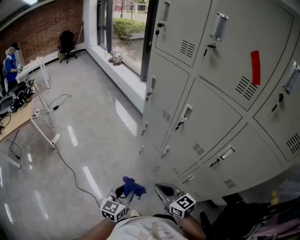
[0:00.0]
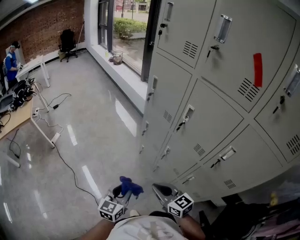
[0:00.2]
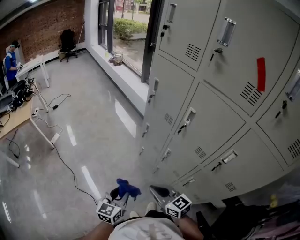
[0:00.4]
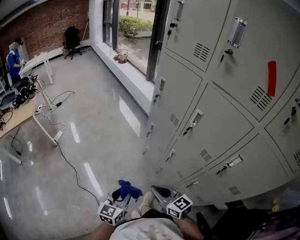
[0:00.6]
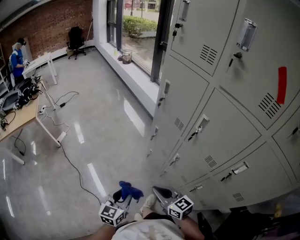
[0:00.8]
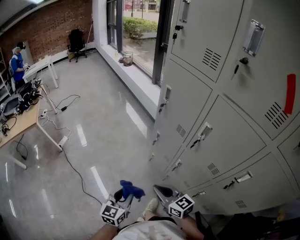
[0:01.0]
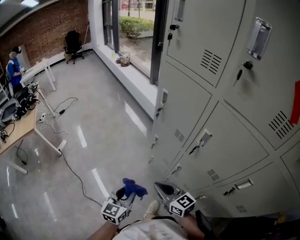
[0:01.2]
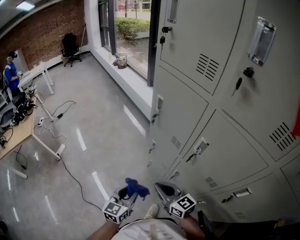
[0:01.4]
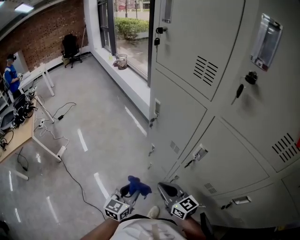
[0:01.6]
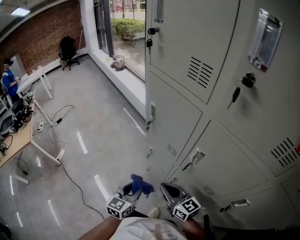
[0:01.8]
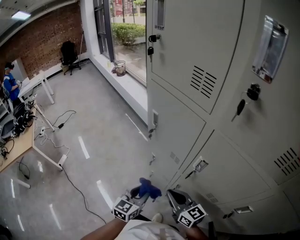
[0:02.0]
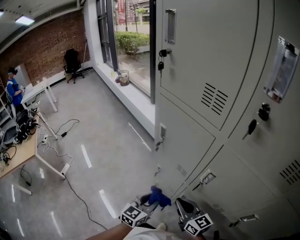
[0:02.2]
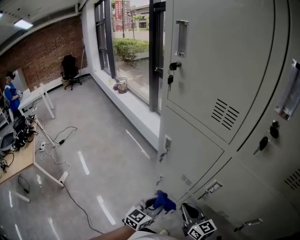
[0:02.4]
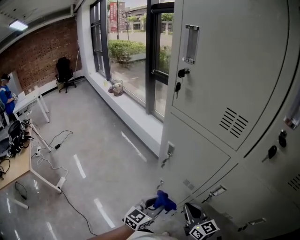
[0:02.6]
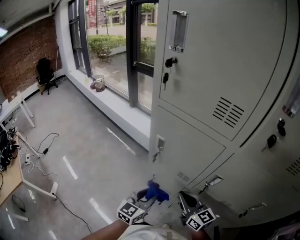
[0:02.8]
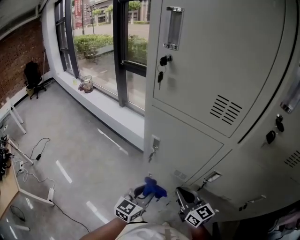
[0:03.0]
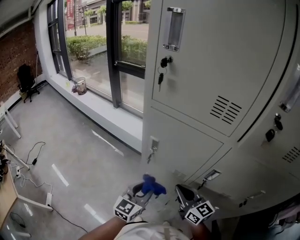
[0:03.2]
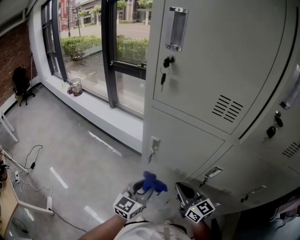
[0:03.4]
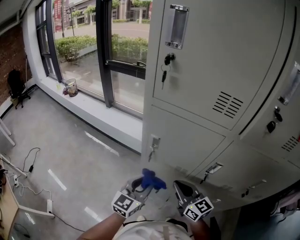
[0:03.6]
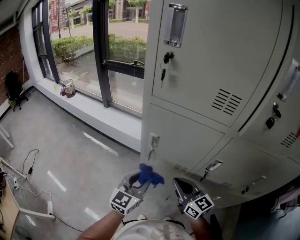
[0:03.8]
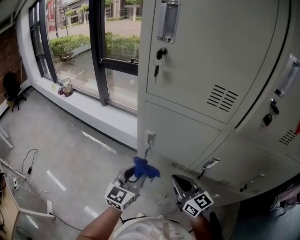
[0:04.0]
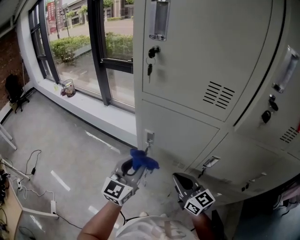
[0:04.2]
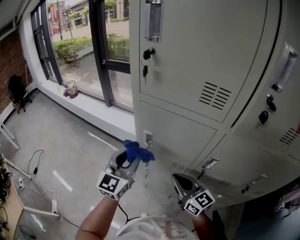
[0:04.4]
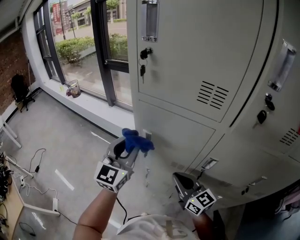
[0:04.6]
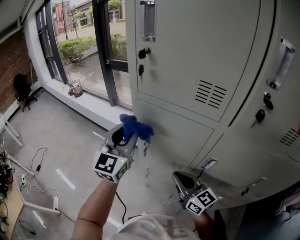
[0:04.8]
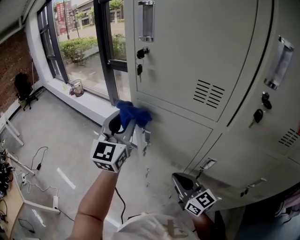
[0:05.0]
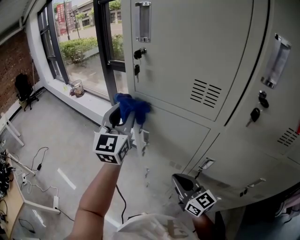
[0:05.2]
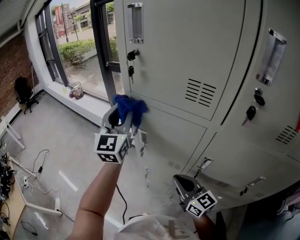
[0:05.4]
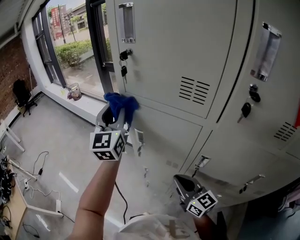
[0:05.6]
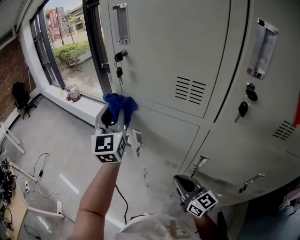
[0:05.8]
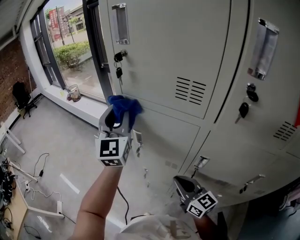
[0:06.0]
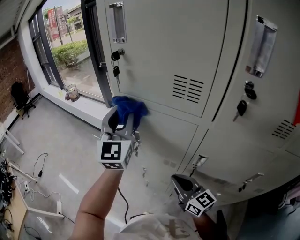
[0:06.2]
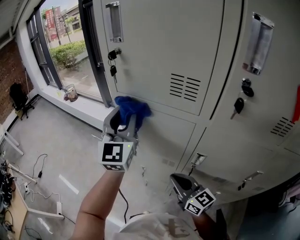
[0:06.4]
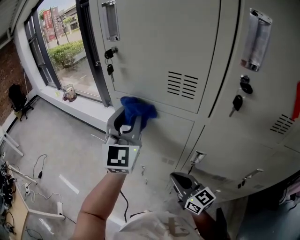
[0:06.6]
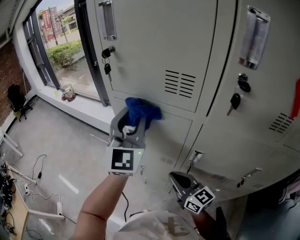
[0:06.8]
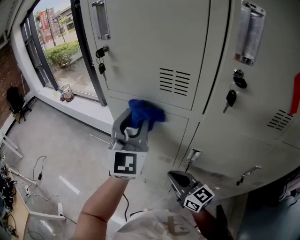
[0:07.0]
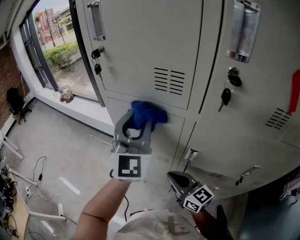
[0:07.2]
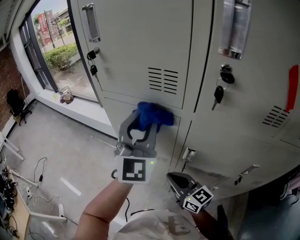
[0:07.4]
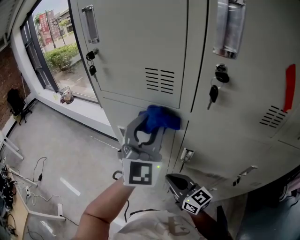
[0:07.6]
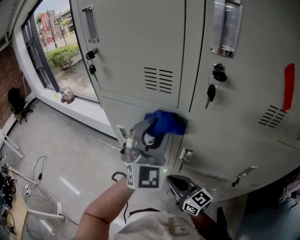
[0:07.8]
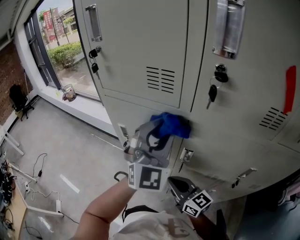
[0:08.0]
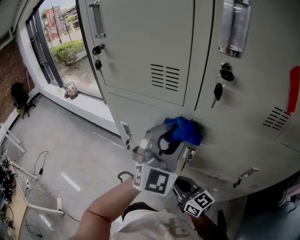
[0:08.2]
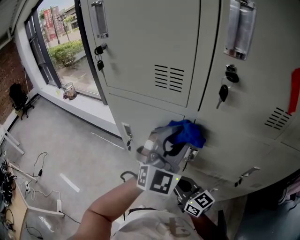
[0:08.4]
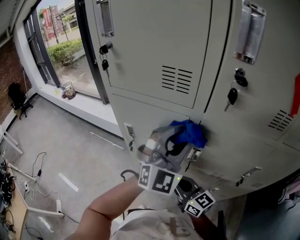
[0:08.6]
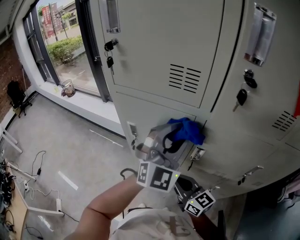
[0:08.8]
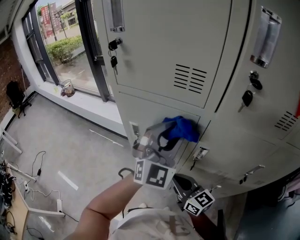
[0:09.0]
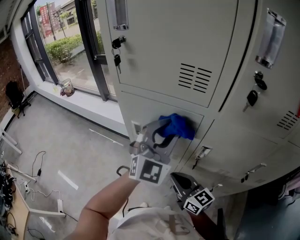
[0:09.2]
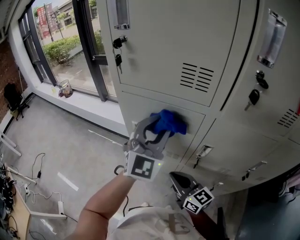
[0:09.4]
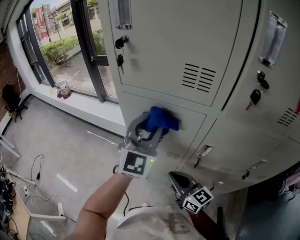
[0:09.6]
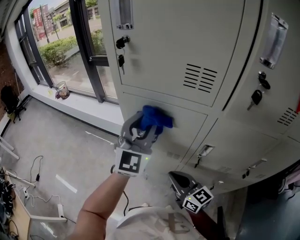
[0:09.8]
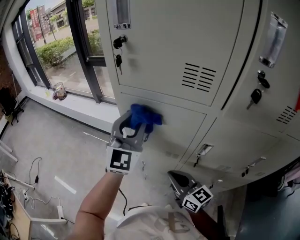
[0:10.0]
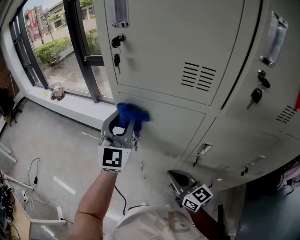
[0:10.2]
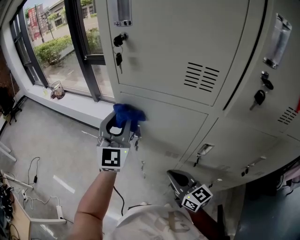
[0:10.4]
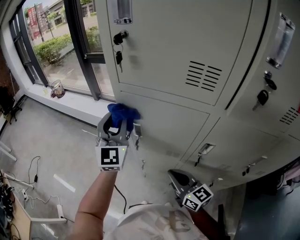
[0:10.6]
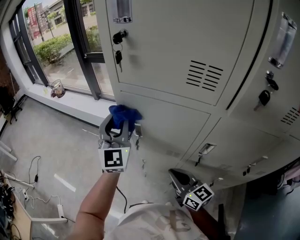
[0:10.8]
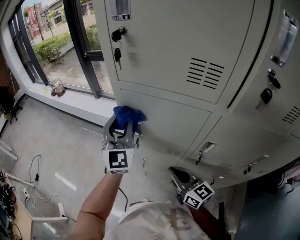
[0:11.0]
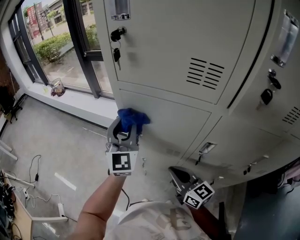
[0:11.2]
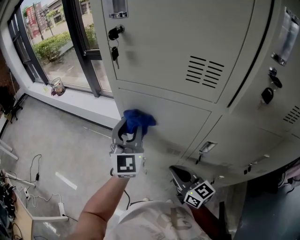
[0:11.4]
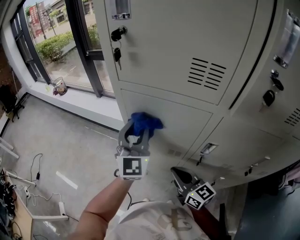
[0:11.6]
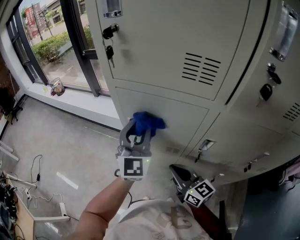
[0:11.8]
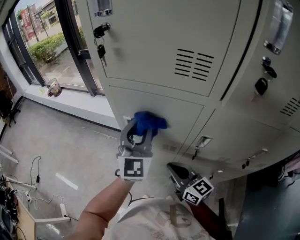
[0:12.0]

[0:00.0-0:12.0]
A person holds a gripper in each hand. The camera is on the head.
0:00.0 to 0:01.6: Both grippers travel together forward, about 25 cm.
0:01.6 to 0:03.0: The left gripper changes place by roughly 20 cm, and turns by some 30 degrees. The right gripper ends up roughly 15 cm from where it was, and swivels approximately 30 degrees.
0:03.0 to 0:04.4: The left gripper is displaced upward, forward and to the left by roughly 20 cm.
0:04.4 to 0:06.0: The right gripper moves some 5 cm; the left gripper is displaced upward and forward by about 15 cm, and rotates approximately 30 degrees.
0:06.0 to 0:07.6: The left gripper heads to the right and backward, covering about 20 cm, and swivels some 20 degrees.
0:07.6 to 0:09.0: The left gripper goes approximately 5 cm downward.
0:09.0 to 0:10.4: The left gripper goes some 20 cm to the left and forward, and rotates roughly 20 degrees.
0:10.4 to 0:12.0: The left gripper moves to the right, some 10 cm.

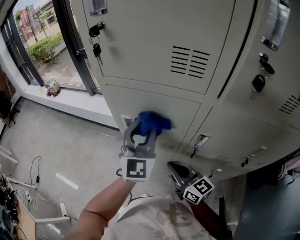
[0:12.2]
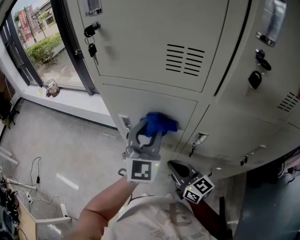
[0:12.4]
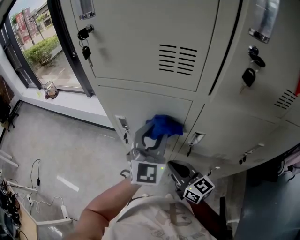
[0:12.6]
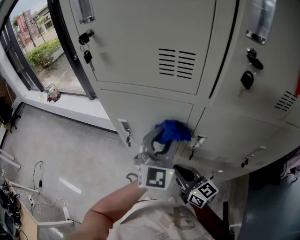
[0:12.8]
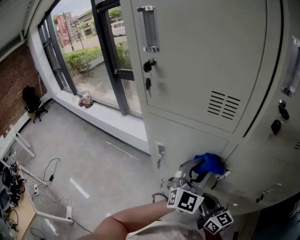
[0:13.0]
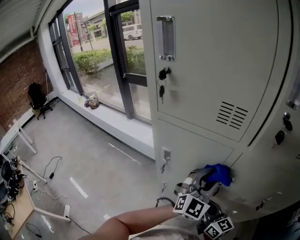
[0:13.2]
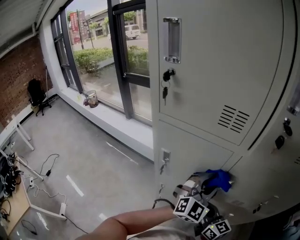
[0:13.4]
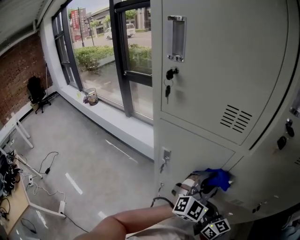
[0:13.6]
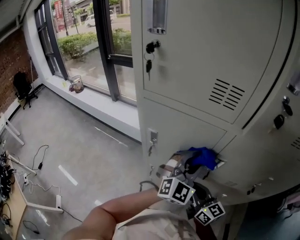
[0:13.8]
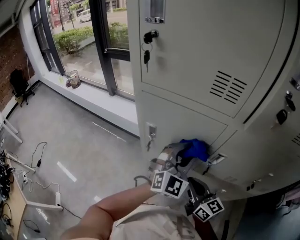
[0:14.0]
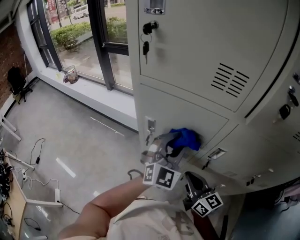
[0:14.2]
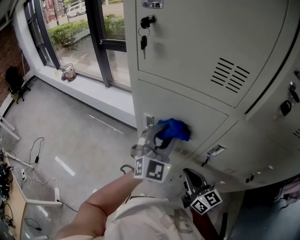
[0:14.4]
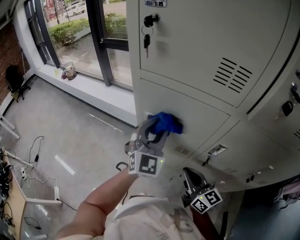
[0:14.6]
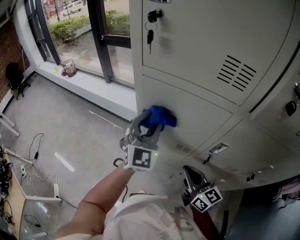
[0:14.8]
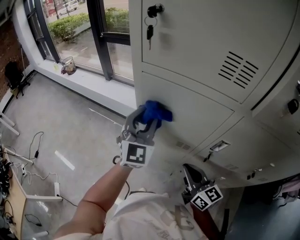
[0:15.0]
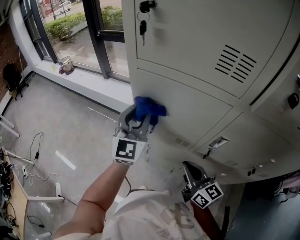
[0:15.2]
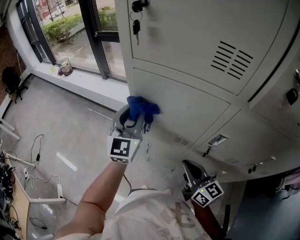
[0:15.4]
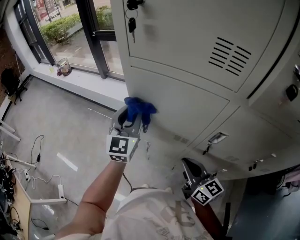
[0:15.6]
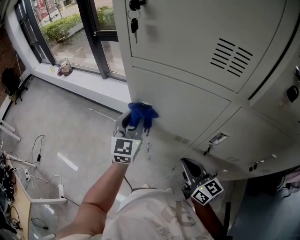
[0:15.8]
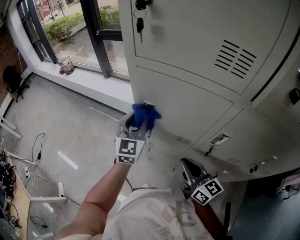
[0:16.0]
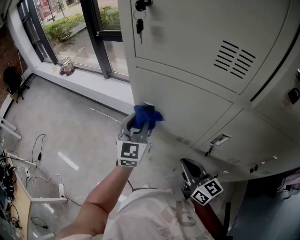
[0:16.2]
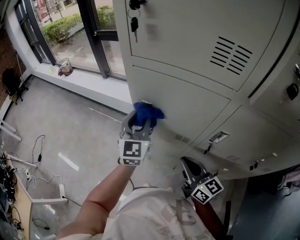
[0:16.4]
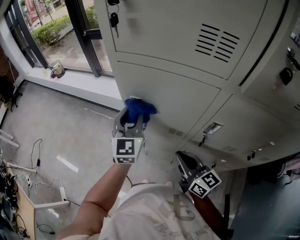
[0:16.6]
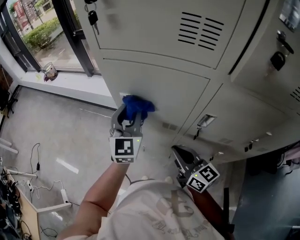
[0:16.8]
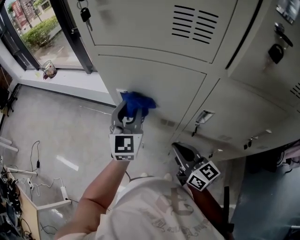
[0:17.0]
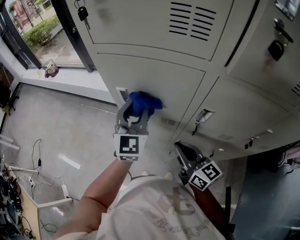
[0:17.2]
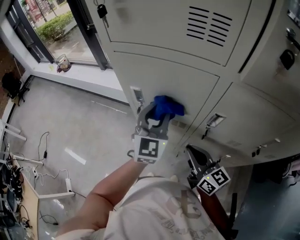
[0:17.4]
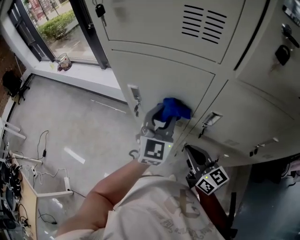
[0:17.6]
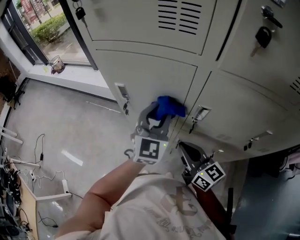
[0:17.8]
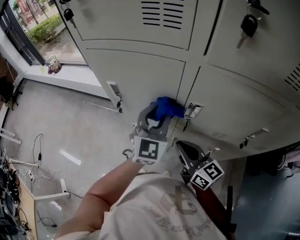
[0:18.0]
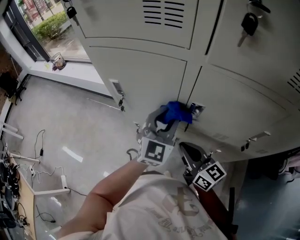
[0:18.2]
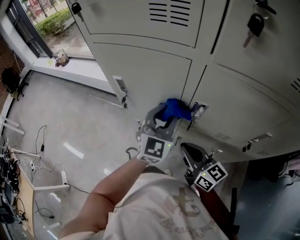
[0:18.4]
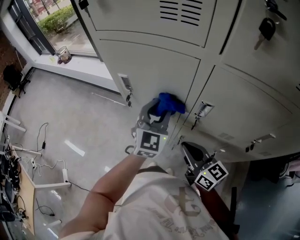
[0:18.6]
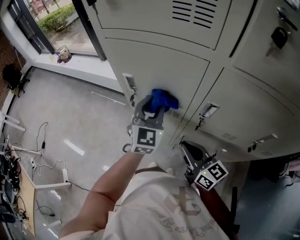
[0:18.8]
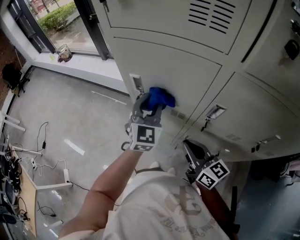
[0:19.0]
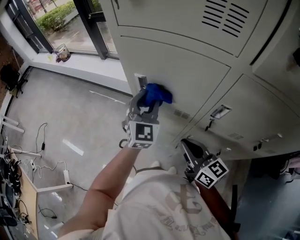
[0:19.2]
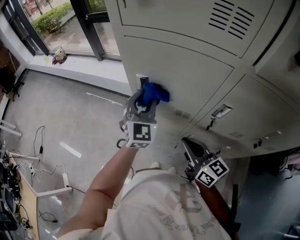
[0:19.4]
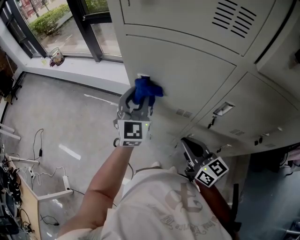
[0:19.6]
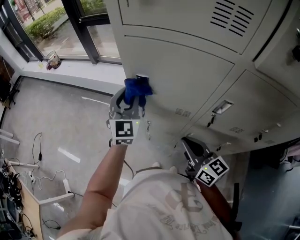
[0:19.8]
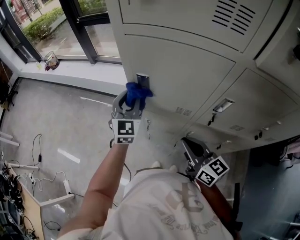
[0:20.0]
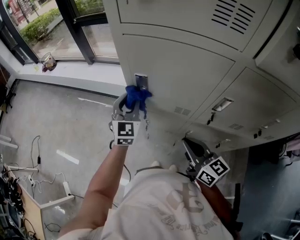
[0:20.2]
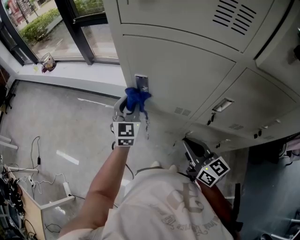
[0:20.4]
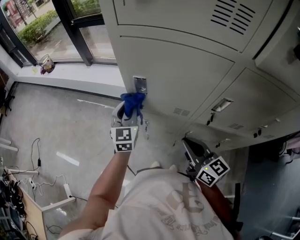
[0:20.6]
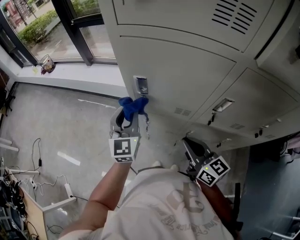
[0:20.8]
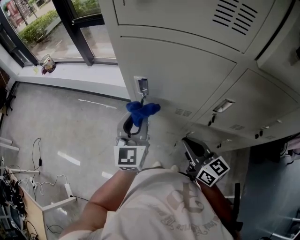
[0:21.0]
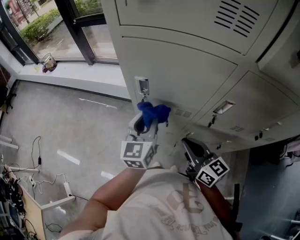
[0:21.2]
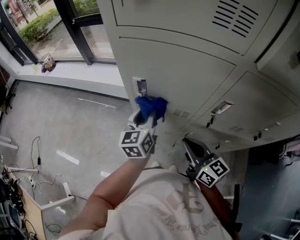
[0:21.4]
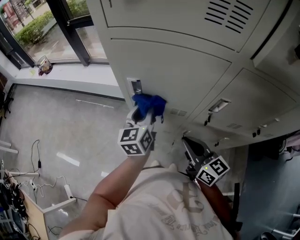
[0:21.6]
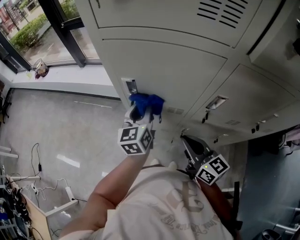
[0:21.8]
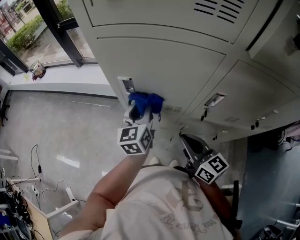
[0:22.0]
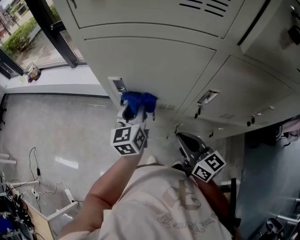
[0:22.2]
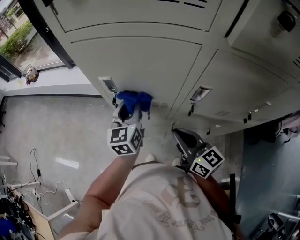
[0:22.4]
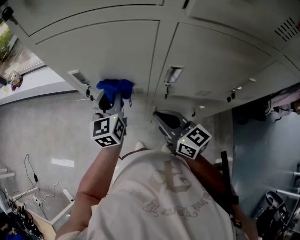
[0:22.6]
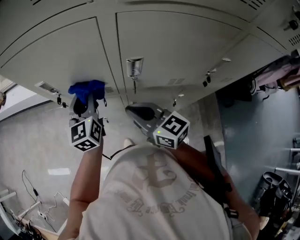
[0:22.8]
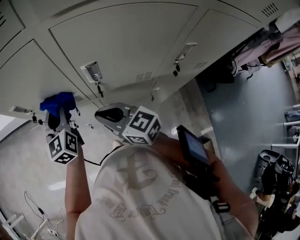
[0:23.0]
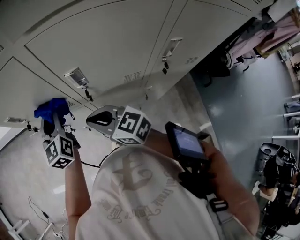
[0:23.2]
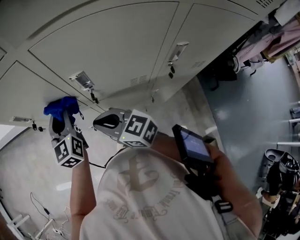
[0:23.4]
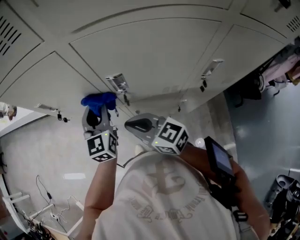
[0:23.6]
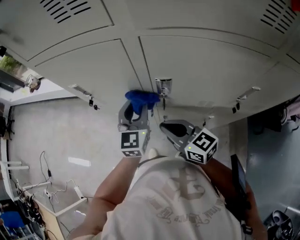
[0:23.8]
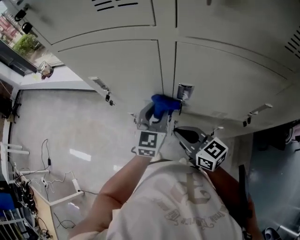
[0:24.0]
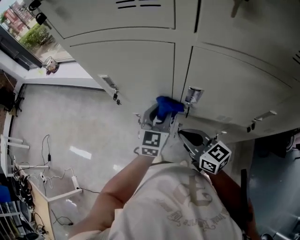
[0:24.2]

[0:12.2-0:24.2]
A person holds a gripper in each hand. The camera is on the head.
0:12.2 to 0:13.8: The left gripper heads to the right, covering some 10 cm, and swivels about 20 degrees.
0:13.8 to 0:15.2: The left gripper moves to the left and forward, roughly 20 cm, and turns by about 20 degrees.
0:15.2 to 0:16.6: The left gripper goes approximately 5 cm downward.
0:16.6 to 0:18.2: The left gripper is displaced to the right and backward by some 25 cm, and rotates roughly 20 degrees; the right gripper travels to the right by about 10 cm.
0:18.2 to 0:19.8: The right gripper goes roughly 10 cm to the left, while the left gripper travels to the left and forward by some 25 cm.
0:19.8 to 0:21.2: The left gripper moves backward and to the right, about 10 cm, and rotates approximately 30 degrees.
0:21.2 to 0:22.6: Both grippers travel together to the right, some 5 cm.
0:22.6 to 0:24.2: The right gripper ends up approximately 5 cm from where it was. The left gripper moves to the right and backward, approximately 10 cm.
